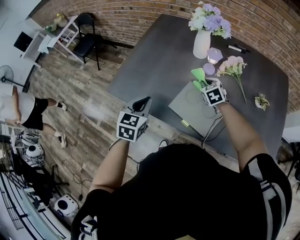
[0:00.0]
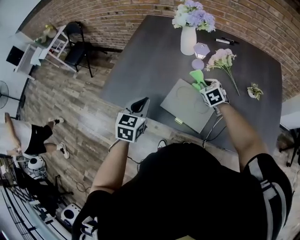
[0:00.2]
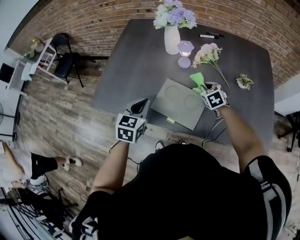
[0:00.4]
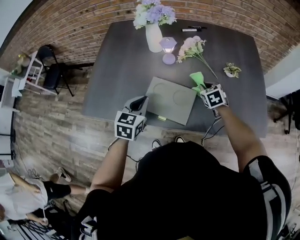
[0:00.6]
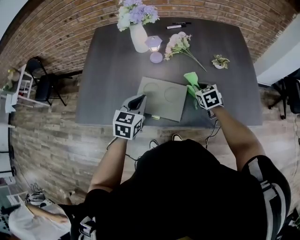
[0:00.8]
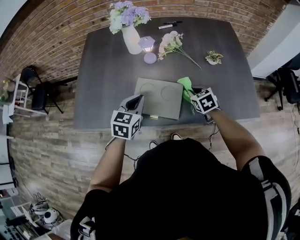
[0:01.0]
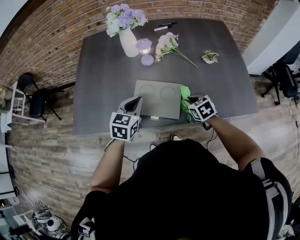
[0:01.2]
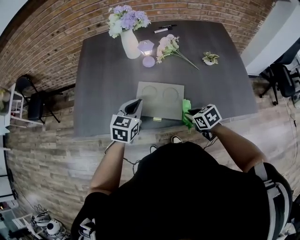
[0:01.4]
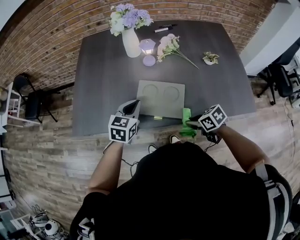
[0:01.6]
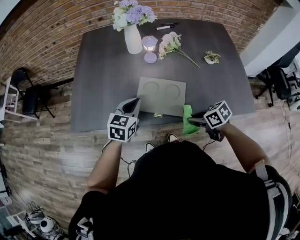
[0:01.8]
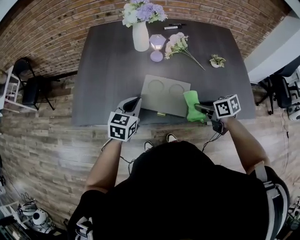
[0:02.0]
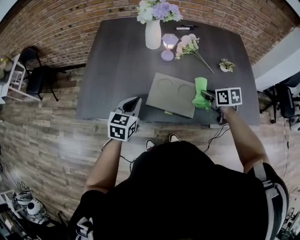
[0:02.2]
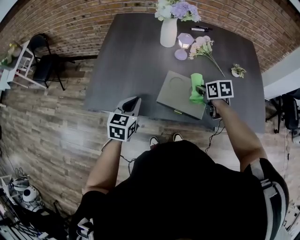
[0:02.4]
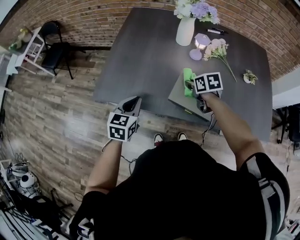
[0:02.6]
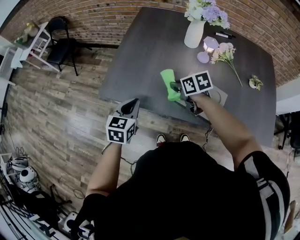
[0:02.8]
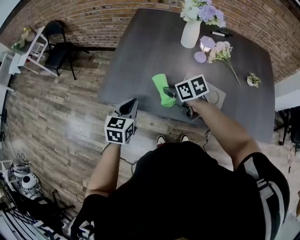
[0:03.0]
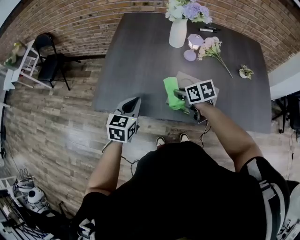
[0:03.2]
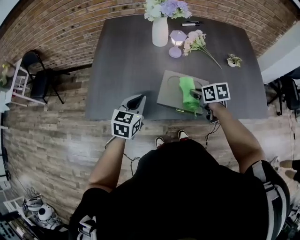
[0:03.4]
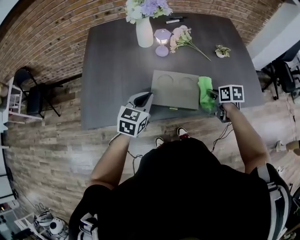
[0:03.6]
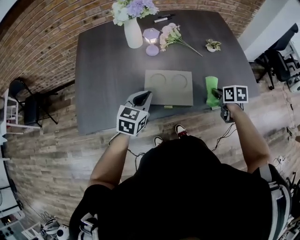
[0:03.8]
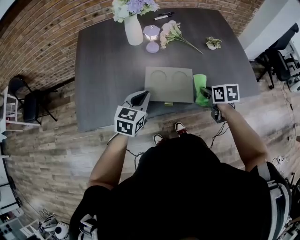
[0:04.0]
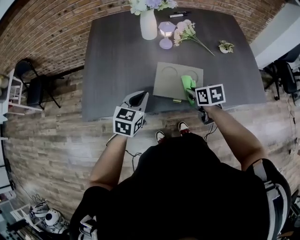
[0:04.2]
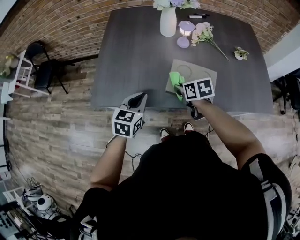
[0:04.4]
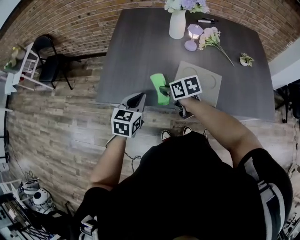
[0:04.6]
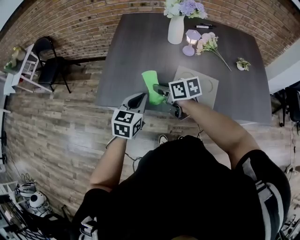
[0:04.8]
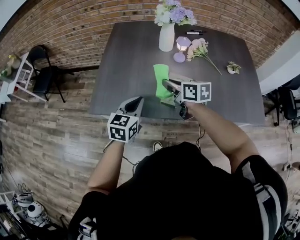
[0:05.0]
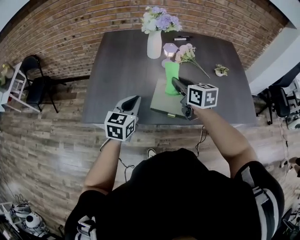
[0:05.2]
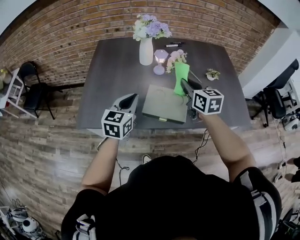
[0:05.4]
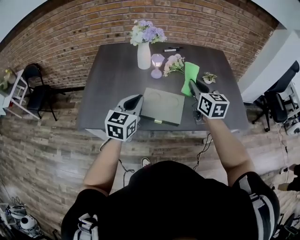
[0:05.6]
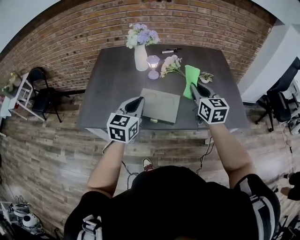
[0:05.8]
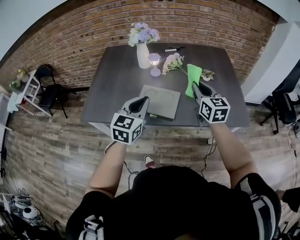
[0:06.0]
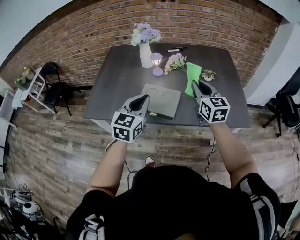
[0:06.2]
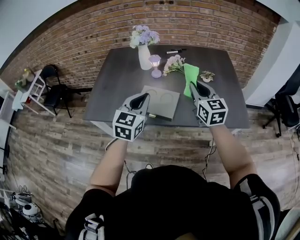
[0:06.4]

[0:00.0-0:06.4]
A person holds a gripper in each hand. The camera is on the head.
0:00.0 to 0:01.6: The right gripper heads backward, covering approximately 30 cm, and turns by approximately 50 degrees. Meanwhile the left gripper is displaced to the right by approximately 10 cm, and turns by some 30 degrees.
0:01.6 to 0:03.2: The right gripper goes left and right, some 30 cm each way, reversing 2 times. Meanwhile the left gripper shifts approximately 15 cm to the left.
0:04.8 to 0:06.4: The right gripper ends up about 40 cm from where it was, and swivels roughly 50 degrees, while the left gripper ends up approximately 25 cm from where it was.

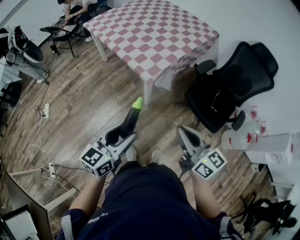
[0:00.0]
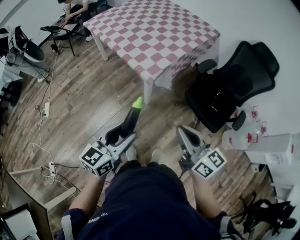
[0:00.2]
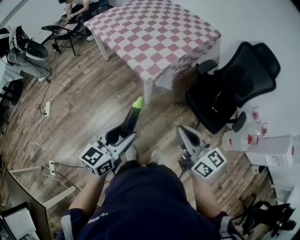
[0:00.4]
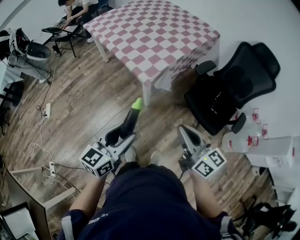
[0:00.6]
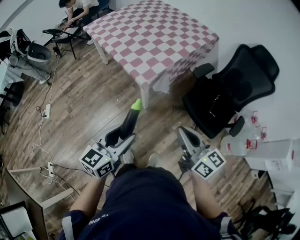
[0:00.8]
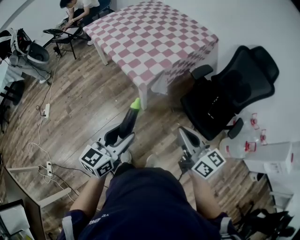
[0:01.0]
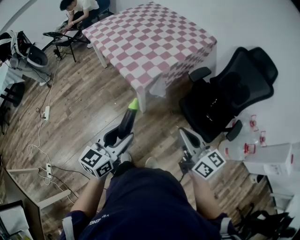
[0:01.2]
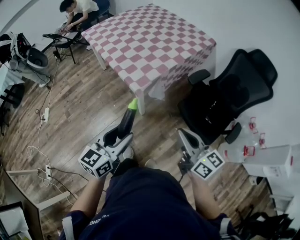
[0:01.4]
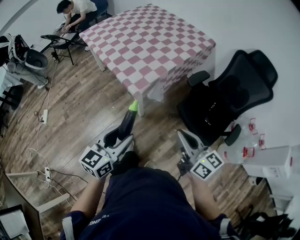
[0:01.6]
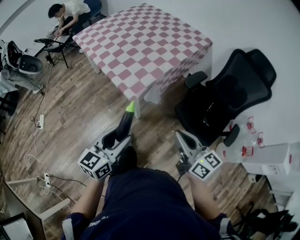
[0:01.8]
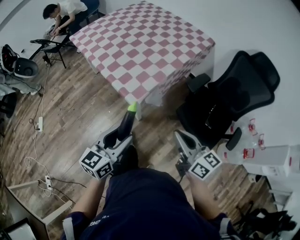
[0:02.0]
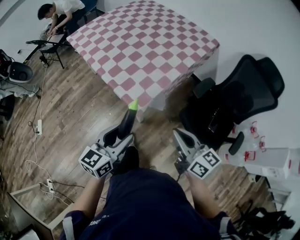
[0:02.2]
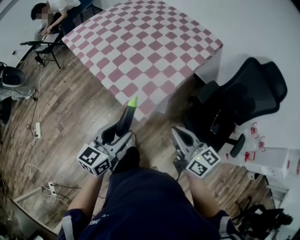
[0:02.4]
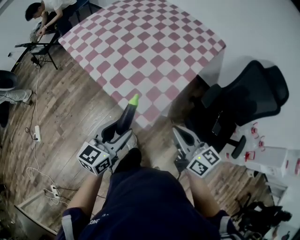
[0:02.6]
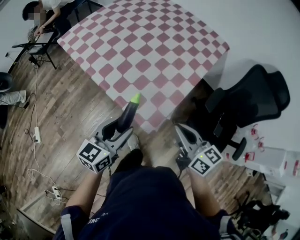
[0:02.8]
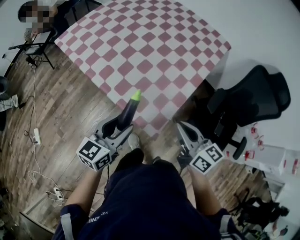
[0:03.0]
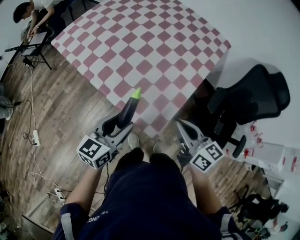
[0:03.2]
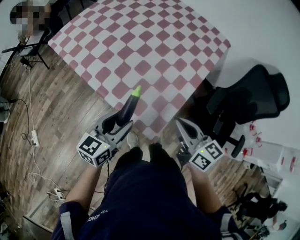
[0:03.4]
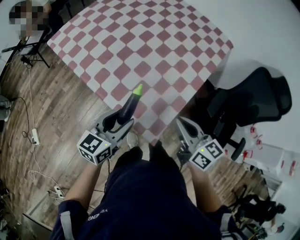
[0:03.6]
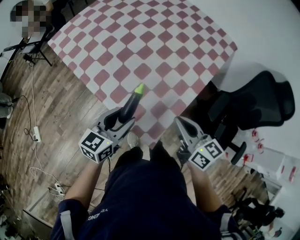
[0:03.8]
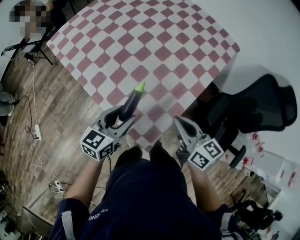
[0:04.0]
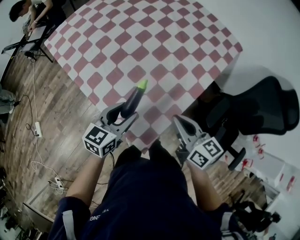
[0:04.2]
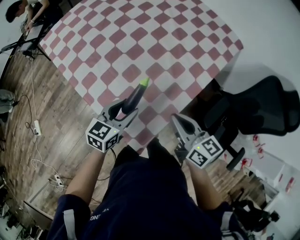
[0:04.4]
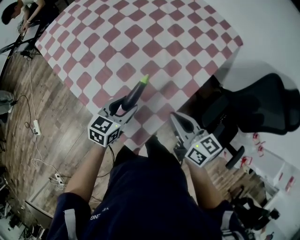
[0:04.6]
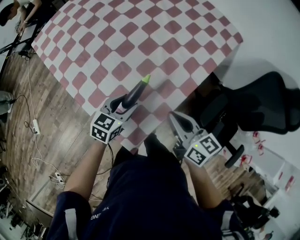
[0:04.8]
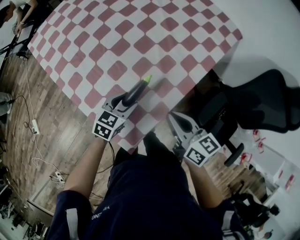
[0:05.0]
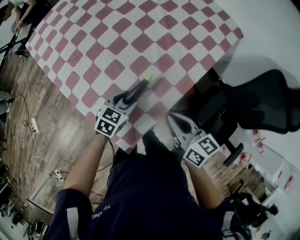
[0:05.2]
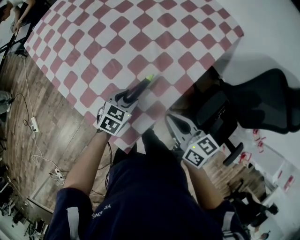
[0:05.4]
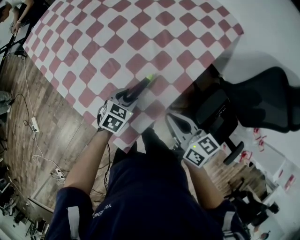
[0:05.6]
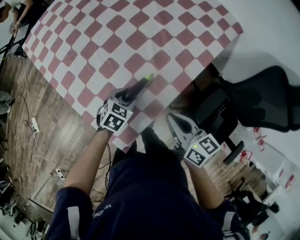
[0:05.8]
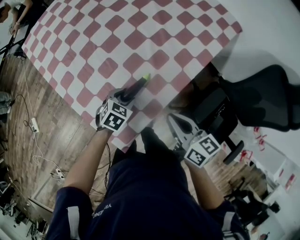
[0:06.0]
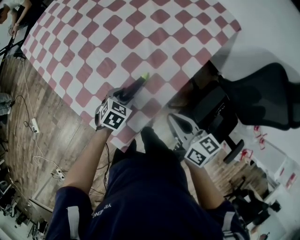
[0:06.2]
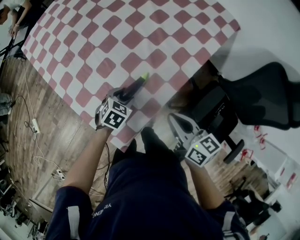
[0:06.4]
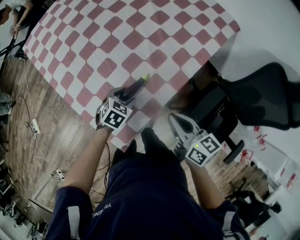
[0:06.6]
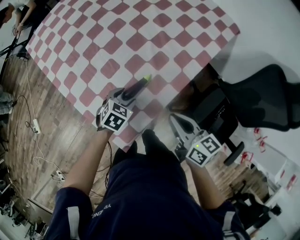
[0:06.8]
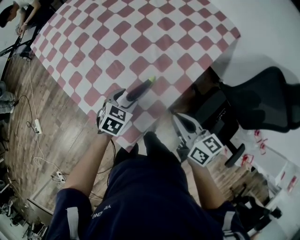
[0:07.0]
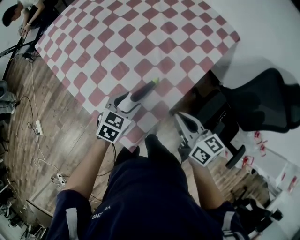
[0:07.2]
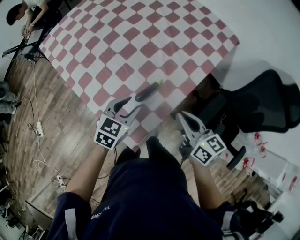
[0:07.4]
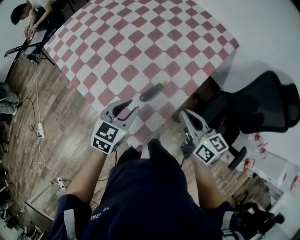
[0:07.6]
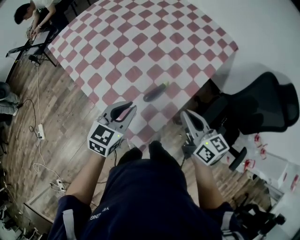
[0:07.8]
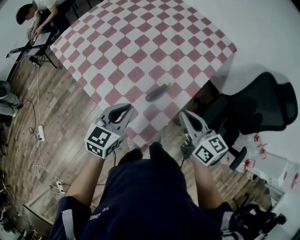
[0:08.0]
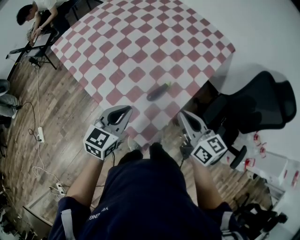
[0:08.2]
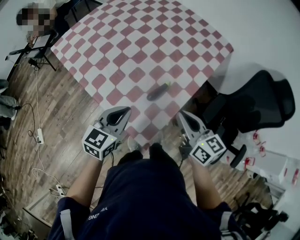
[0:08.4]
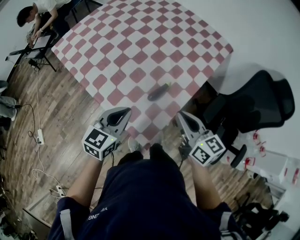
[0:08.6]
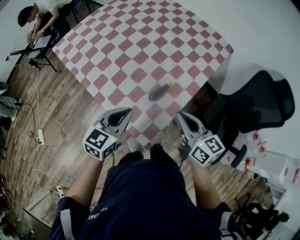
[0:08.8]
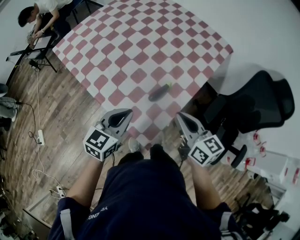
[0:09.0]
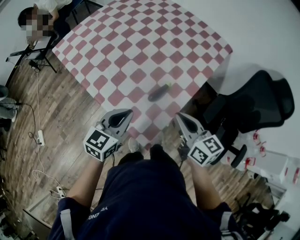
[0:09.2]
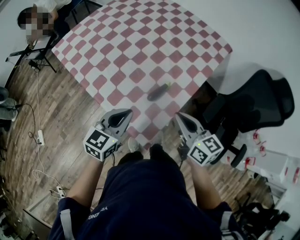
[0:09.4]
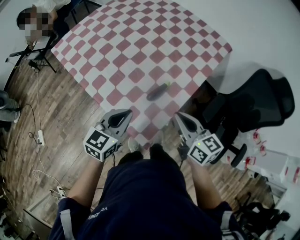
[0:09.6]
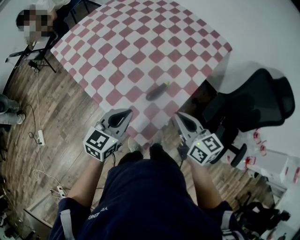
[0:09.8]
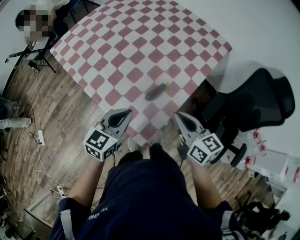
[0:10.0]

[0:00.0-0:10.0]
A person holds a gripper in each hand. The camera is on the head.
0:00.0 to 0:01.4: The right gripper travels to the right and forward by roughly 10 cm. Meanwhile the left gripper heads to the right, covering about 10 cm.
0:01.4 to 0:02.8: The left gripper is displaced forward by some 35 cm. The right gripper heads forward and to the left, covering some 35 cm.
0:02.8 to 0:04.2: Both grippers move forward, some 15 cm.
0:04.2 to 0:05.8: The right gripper goes about 10 cm to the right and downward, while the left gripper travels downward and to the right by some 20 cm, and tips its fingers downward by roughly 30 degrees.
0:05.8 to 0:07.2: The left gripper is displaced upward by roughly 10 cm.
0:07.2 to 0:08.6: The left gripper goes about 20 cm upward, to the left and backward, swivels approximately 20 degrees, and closes, while the right gripper goes approximately 10 cm to the left and upward.
0:08.6 to 0:10.0: The grippers stay close to where they were, moving slightly.

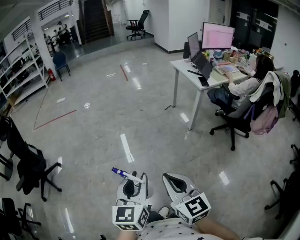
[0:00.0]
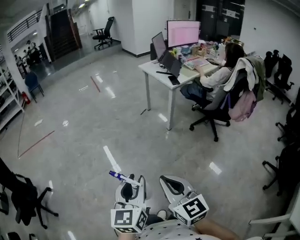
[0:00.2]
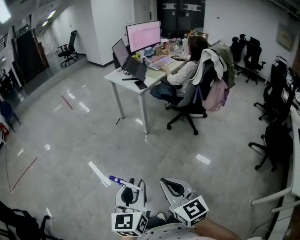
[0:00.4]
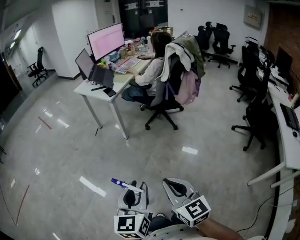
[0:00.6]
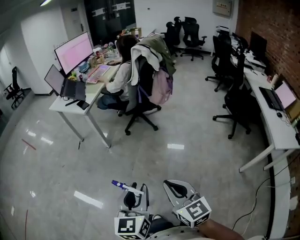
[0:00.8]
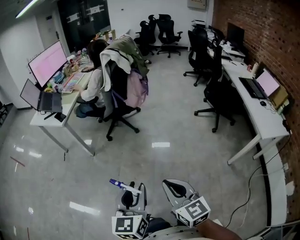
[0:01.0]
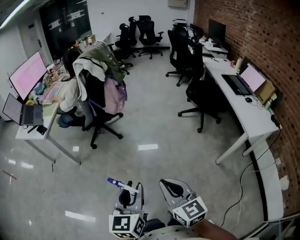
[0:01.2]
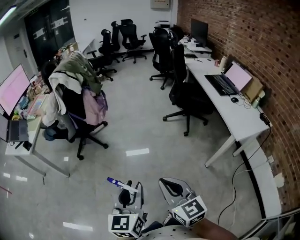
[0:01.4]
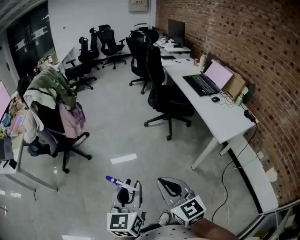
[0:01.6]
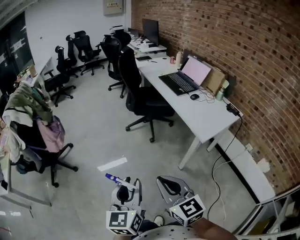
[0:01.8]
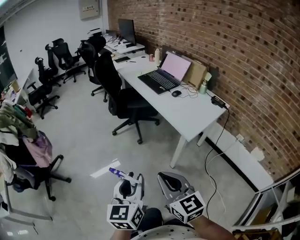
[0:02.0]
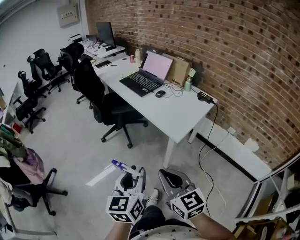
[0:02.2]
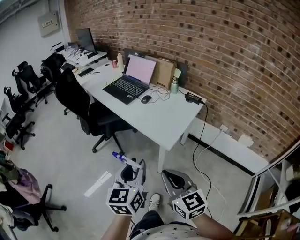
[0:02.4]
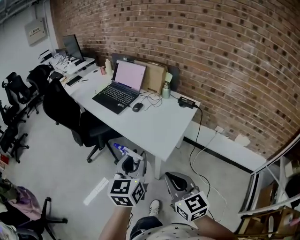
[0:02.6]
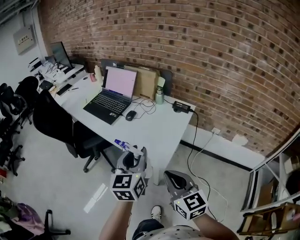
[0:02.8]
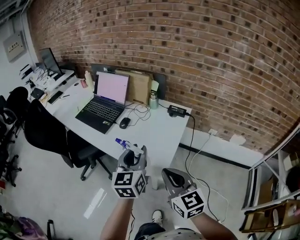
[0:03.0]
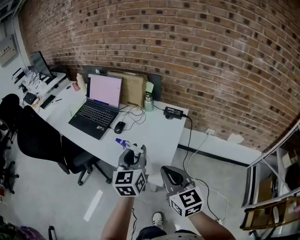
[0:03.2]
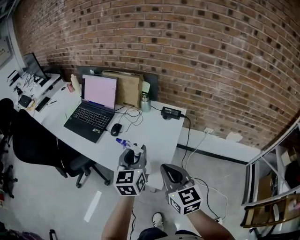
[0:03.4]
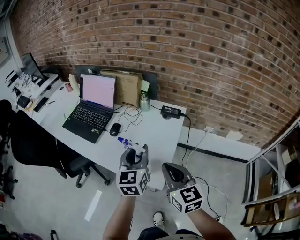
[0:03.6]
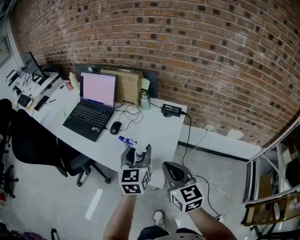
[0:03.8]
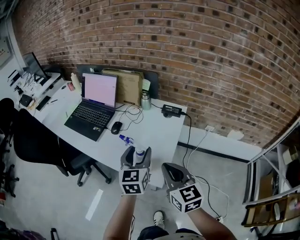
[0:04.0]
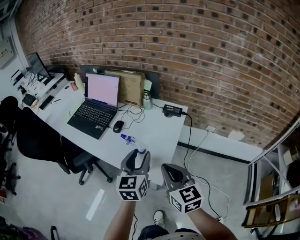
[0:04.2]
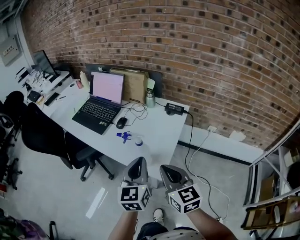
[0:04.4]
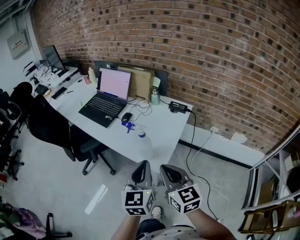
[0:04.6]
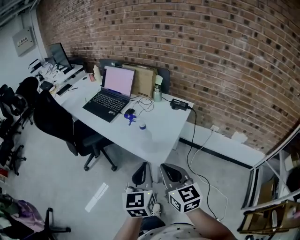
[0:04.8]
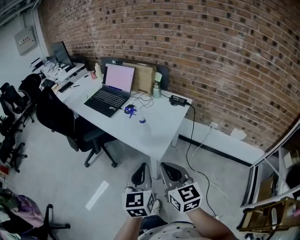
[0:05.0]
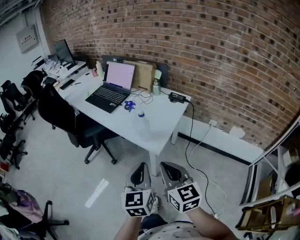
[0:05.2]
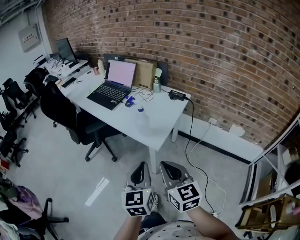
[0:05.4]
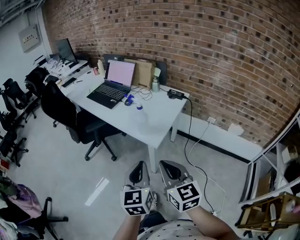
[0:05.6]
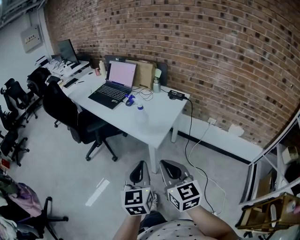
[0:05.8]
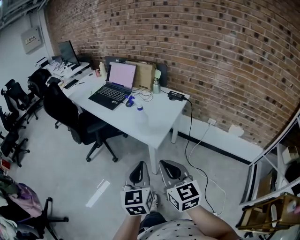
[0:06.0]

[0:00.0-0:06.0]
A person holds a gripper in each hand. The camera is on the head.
0:00.0 to 0:01.6: The two grippers travel together, roughly 70 cm. The right gripper changes its angle by some 80 degrees. Meanwhile the left gripper swivels roughly 80 degrees.
0:01.6 to 0:03.0: The pair of grippers is taken approximately 60 cm. The left gripper changes its angle by about 50 degrees. Meanwhile the right gripper swivels some 50 degrees.
0:03.0 to 0:04.4: The right gripper goes forward and returns, roughly 10 cm each way, while the left gripper goes forward and returns, some 10 cm each way, and closes its fingers.
0:04.4 to 0:06.0: Both grippers travel together backward, roughly 25 cm.

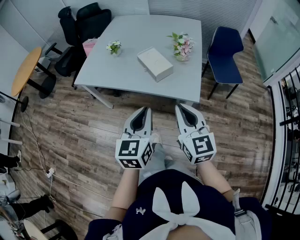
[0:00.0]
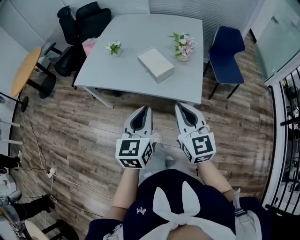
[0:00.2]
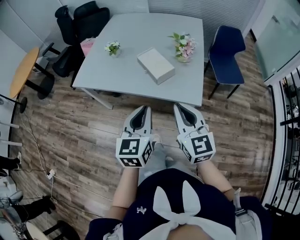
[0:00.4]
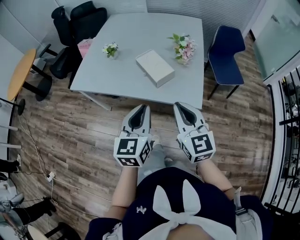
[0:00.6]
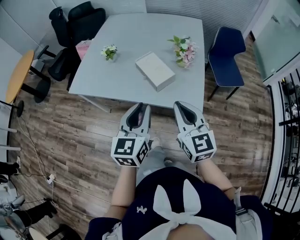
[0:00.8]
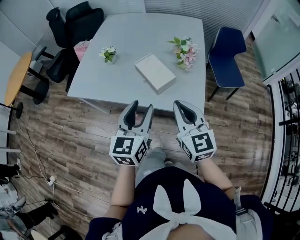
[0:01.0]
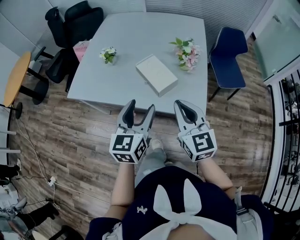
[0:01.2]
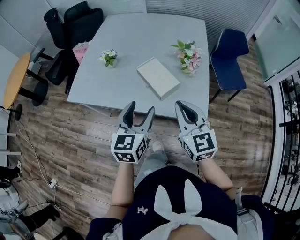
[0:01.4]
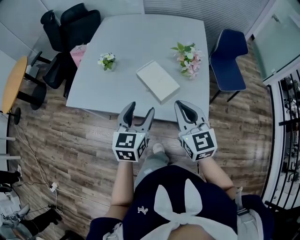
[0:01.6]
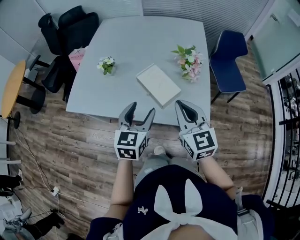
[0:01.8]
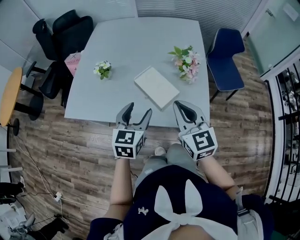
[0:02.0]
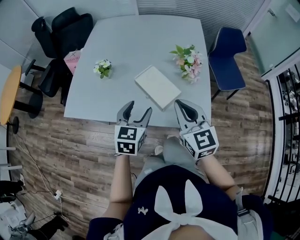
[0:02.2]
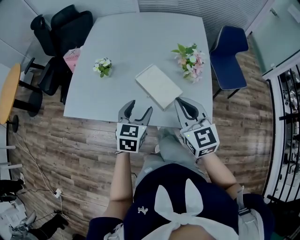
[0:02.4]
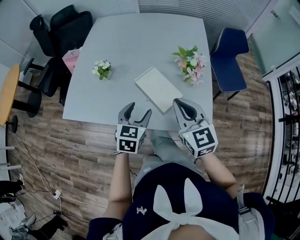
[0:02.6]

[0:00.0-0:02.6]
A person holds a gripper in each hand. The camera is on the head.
0:00.0 to 0:01.2: Both grippers travel together forward, about 15 cm. The left gripper opens.
0:01.2 to 0:02.6: The left gripper is displaced forward and downward by roughly 20 cm, and swivels roughly 20 degrees. Meanwhile the right gripper shifts approximately 15 cm forward.
